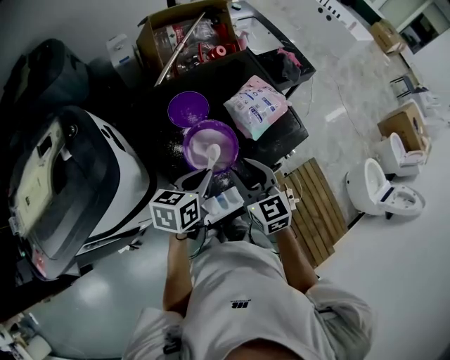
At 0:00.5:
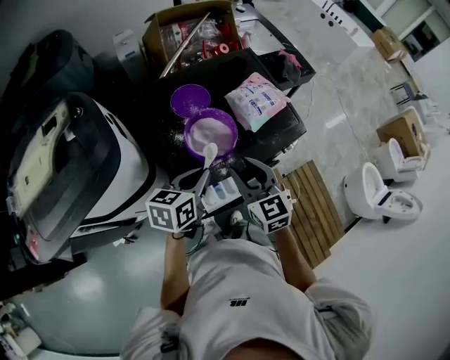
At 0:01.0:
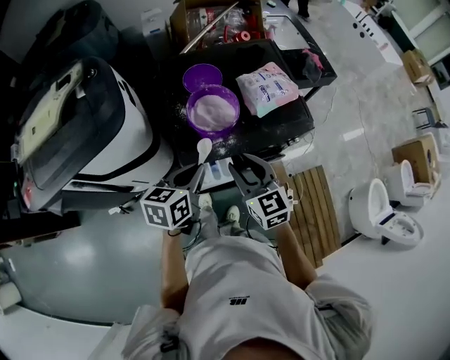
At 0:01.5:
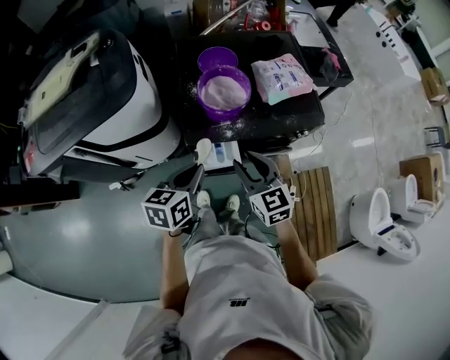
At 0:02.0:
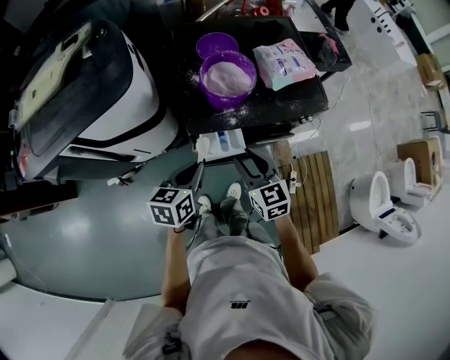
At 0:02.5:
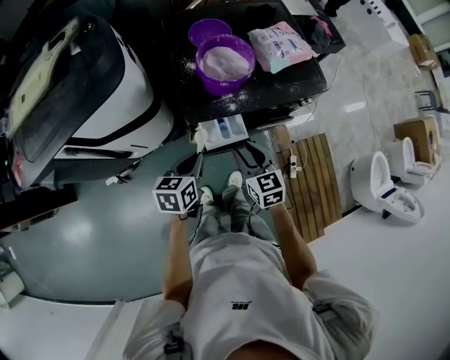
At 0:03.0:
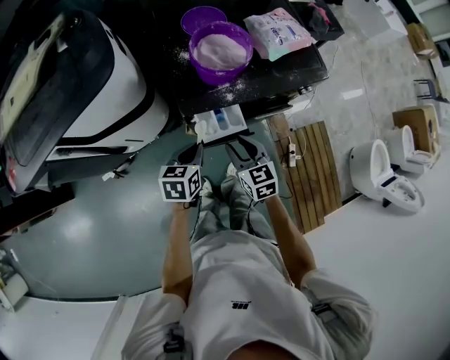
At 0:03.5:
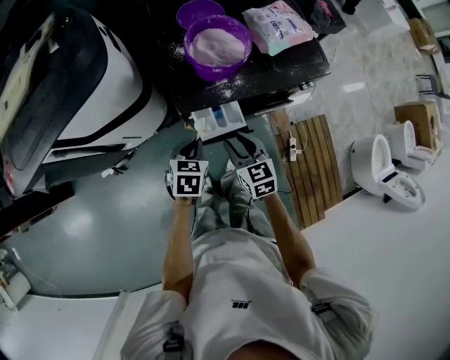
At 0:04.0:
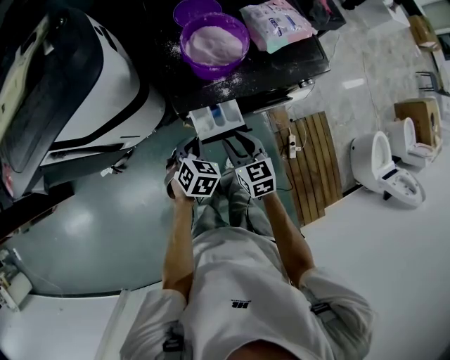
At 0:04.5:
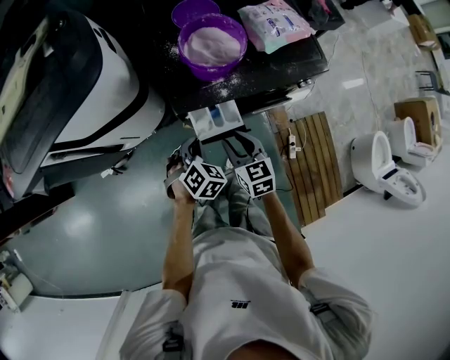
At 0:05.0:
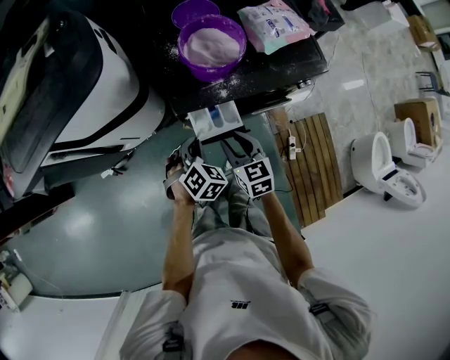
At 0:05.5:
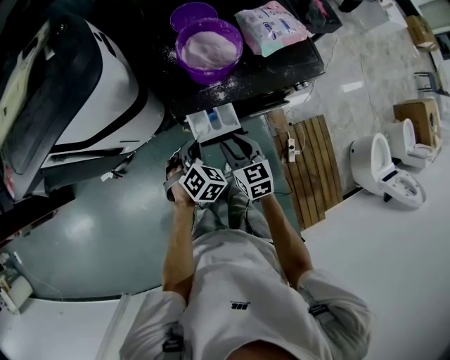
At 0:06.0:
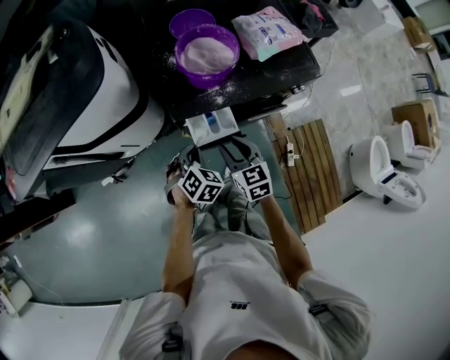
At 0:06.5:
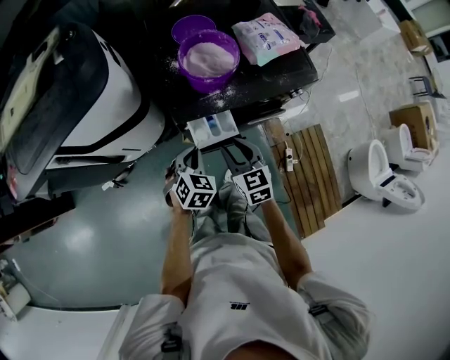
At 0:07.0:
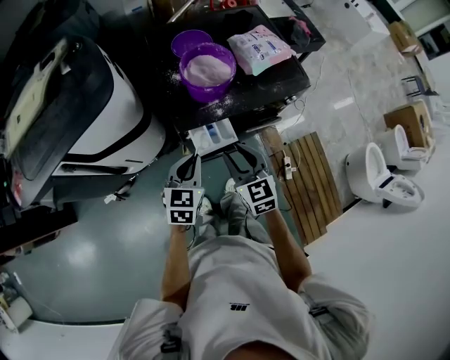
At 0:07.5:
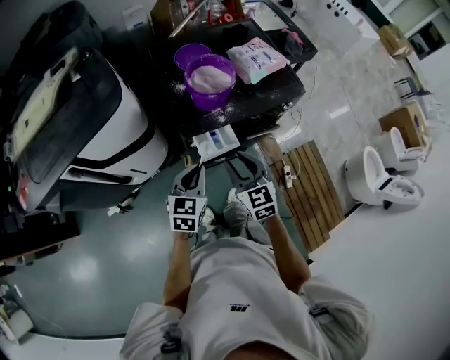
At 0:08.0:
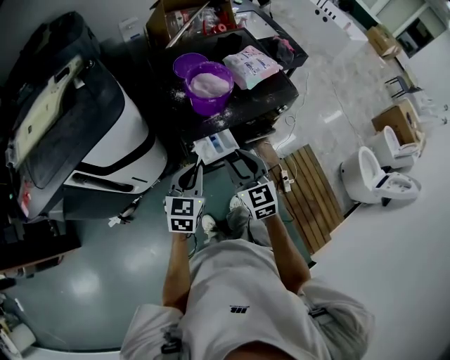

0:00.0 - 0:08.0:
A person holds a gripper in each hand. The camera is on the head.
0:00.0 - 0:02.0: The right gripper is displaced backward and downward by about 20 cm, while the left gripper heads backward, covering about 20 cm, and rotates approximately 20 degrees.
0:02.0 - 0:04.0: Both grippers move downward, about 15 cm. The left gripper rotates roughly 50 degrees.
0:04.0 - 0:06.0: There are only small adjustments of the grippers.
0:06.0 - 0:08.0: Both grippers move upward, about 15 cm. The left gripper tips its fingers upward by roughly 30 degrees.

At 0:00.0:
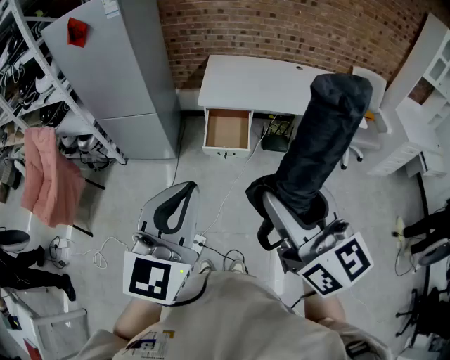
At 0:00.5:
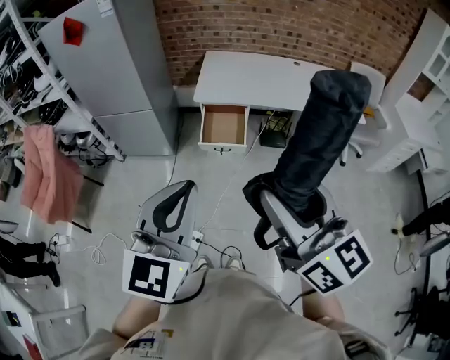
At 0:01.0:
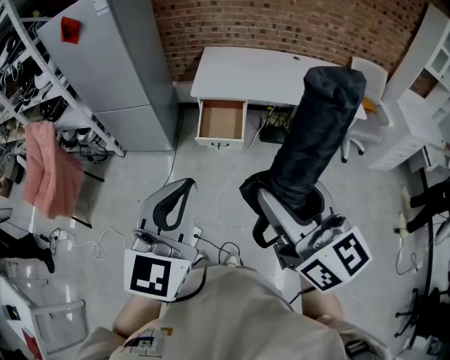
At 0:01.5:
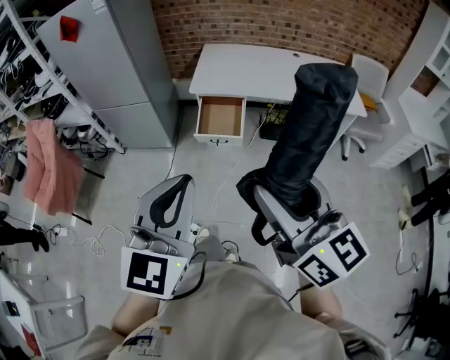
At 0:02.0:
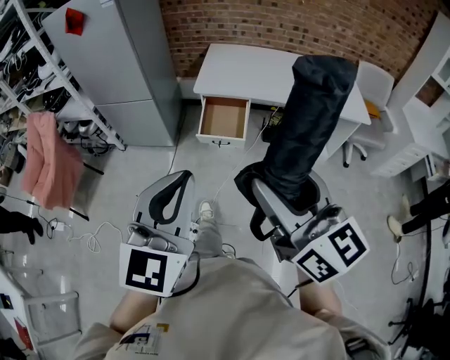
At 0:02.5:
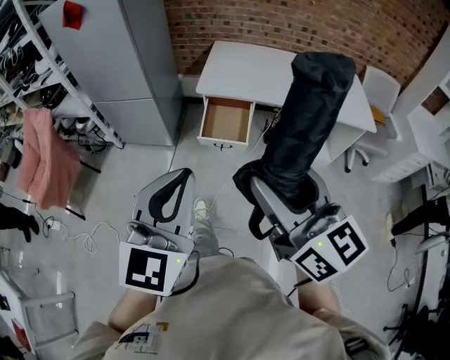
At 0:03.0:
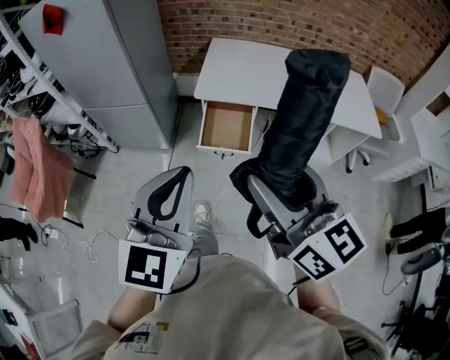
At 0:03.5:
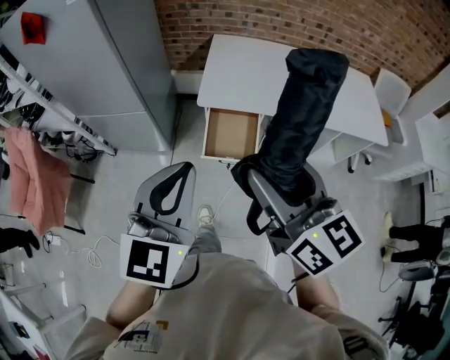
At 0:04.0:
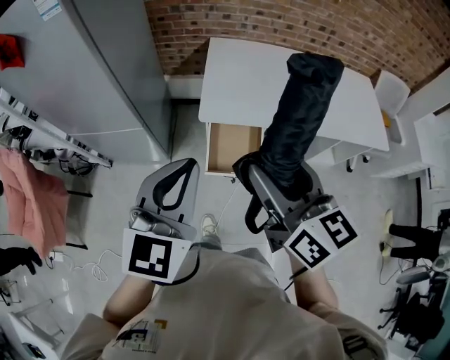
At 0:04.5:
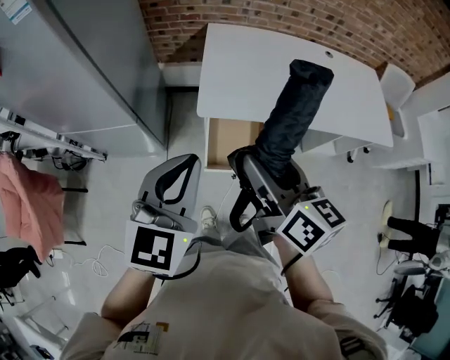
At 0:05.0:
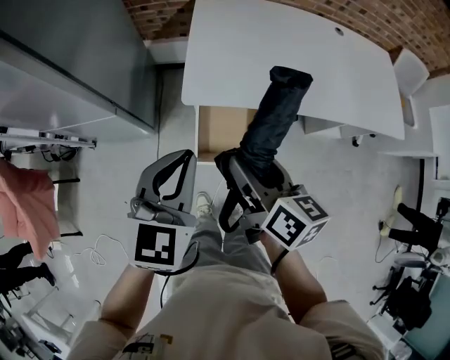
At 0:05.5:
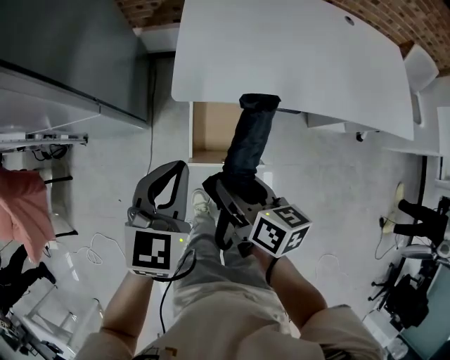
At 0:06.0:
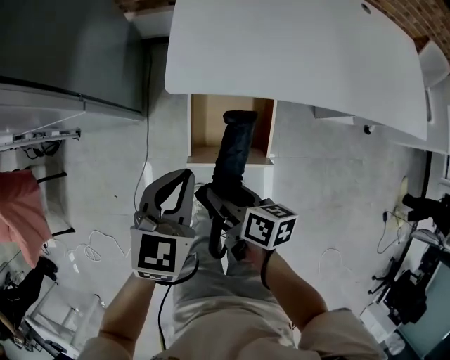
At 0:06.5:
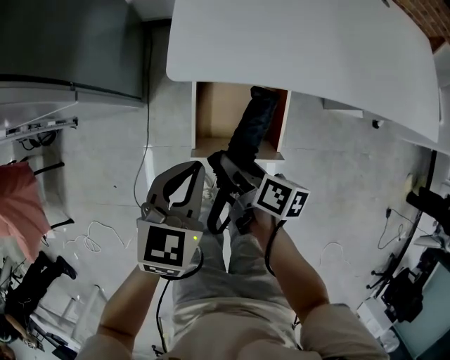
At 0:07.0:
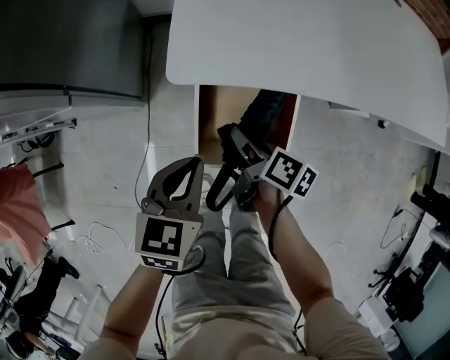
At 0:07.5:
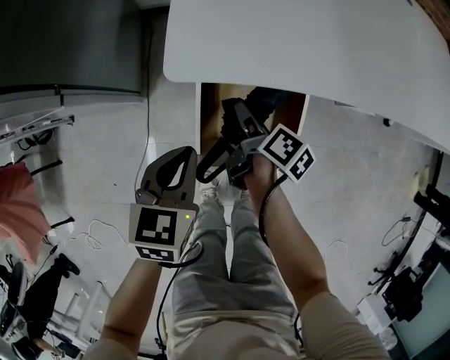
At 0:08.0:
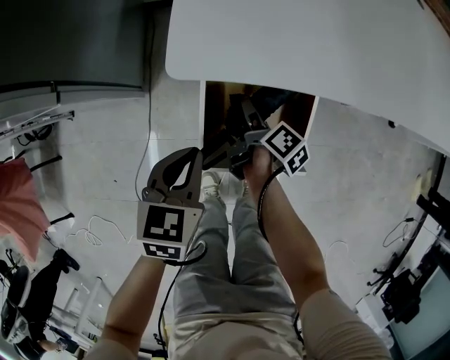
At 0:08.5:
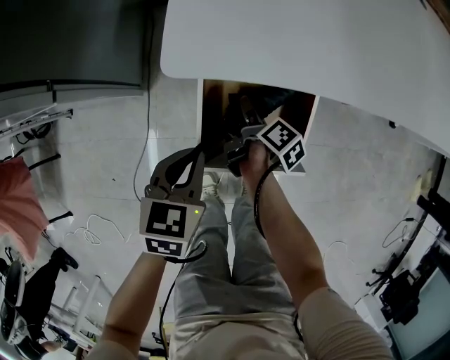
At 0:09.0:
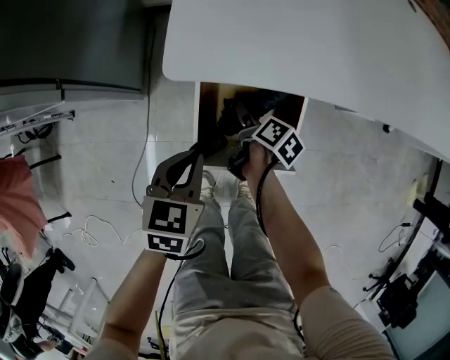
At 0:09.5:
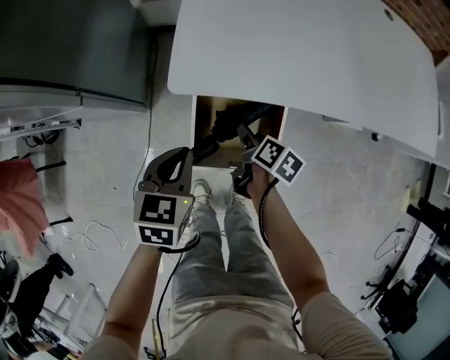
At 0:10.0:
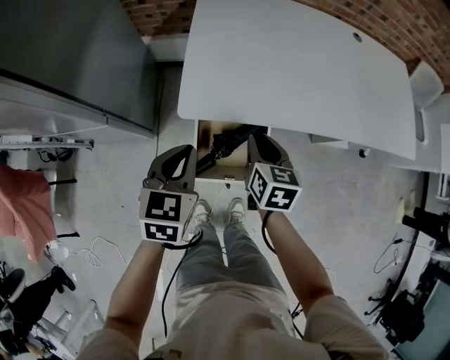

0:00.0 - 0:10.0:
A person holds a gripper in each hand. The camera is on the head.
0:00.0 - 0:02.0: The two grippers go roughly 5 cm to the right.
0:02.0 - 0:04.0: The pair of grippers is taken forward, about 50 cm.
0:04.0 - 0:06.0: The left gripper travels downward and forward by roughly 40 cm, and changes its angle by roughly 30 degrees. The right gripper is displaced downward by about 50 cm, and turns by some 50 degrees.
0:06.0 - 0:08.0: The left gripper shifts roughly 20 cm downward. Meanwhile the right gripper shifts approximately 30 cm downward and forward, and turns by approximately 40 degrees.
0:08.0 - 0:10.0: Both grippers travel together upward, some 30 cm. The right gripper twists some 60 degrees counterclockwise, seen from behind, and closes its fingers.

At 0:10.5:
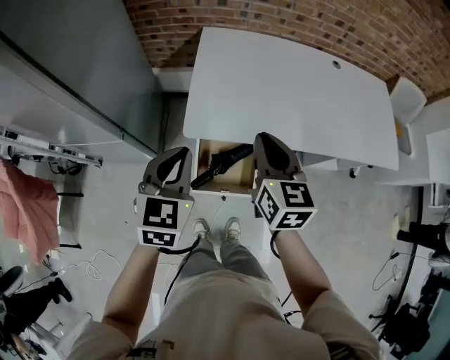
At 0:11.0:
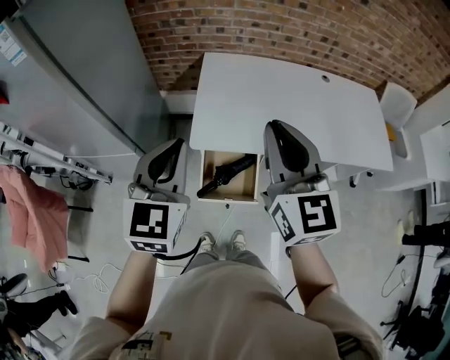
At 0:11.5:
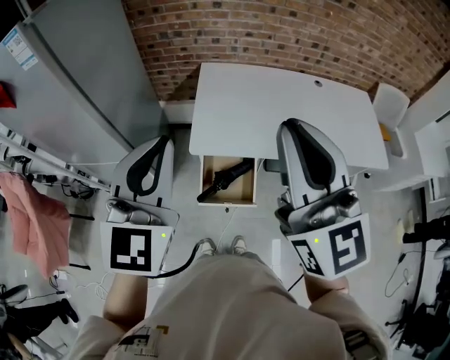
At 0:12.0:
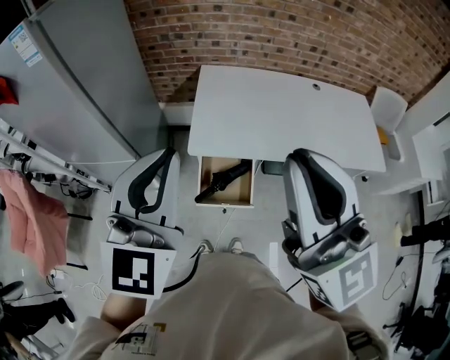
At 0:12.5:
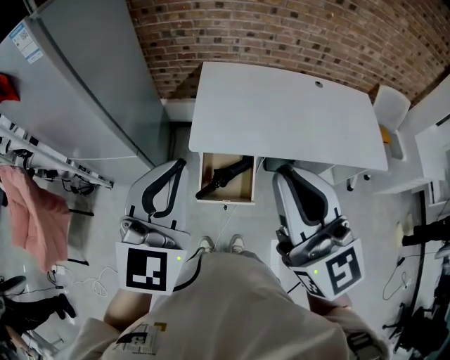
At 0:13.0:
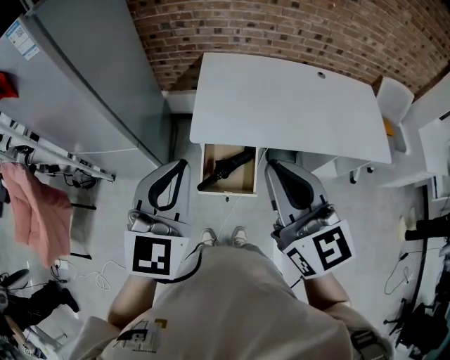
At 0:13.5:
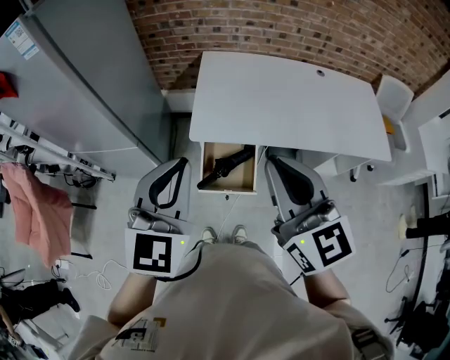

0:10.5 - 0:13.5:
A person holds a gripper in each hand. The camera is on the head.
0:10.5 - 0:12.0: Both grippers move upward and backward, approximately 35 cm. The left gripper changes its angle by roughly 30 degrees; the right gripper tips its fingers upward by approximately 30 degrees.
0:12.0 - 0:13.5: The two grippers go roughly 10 cm downward.

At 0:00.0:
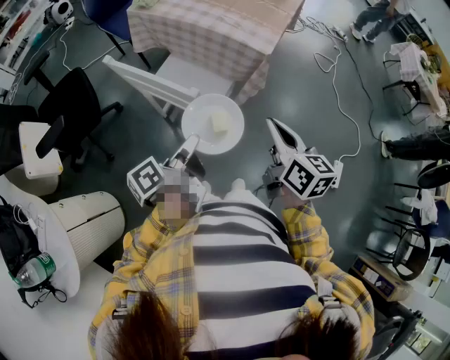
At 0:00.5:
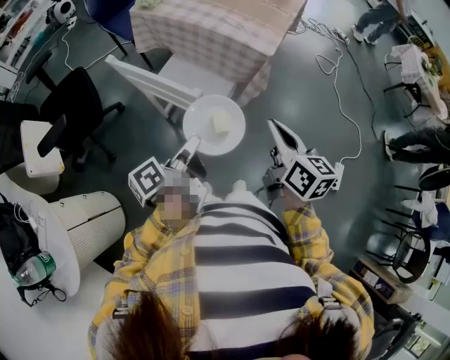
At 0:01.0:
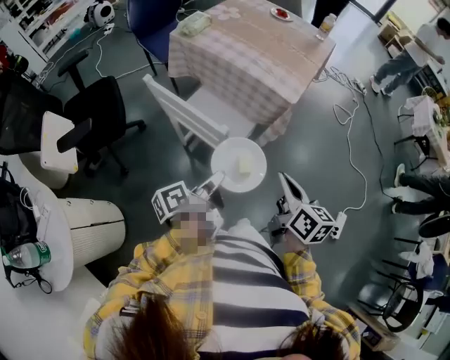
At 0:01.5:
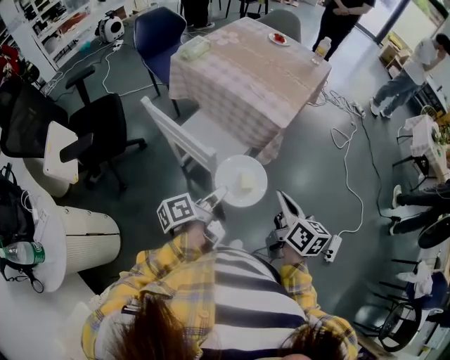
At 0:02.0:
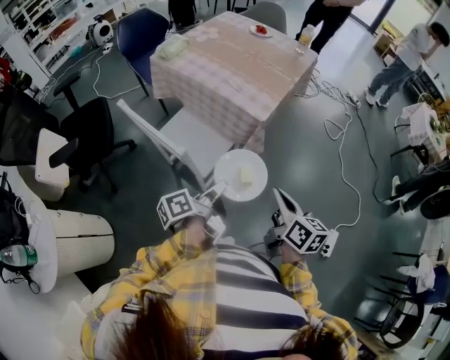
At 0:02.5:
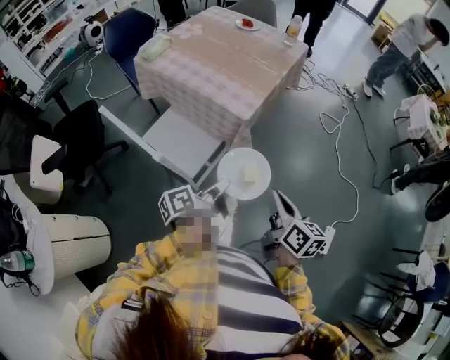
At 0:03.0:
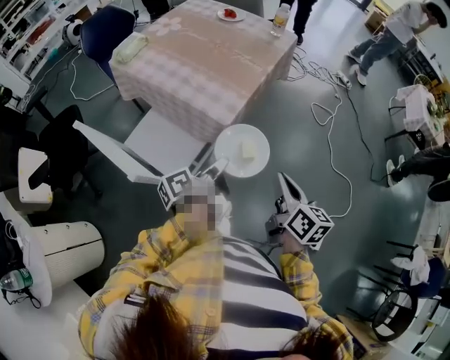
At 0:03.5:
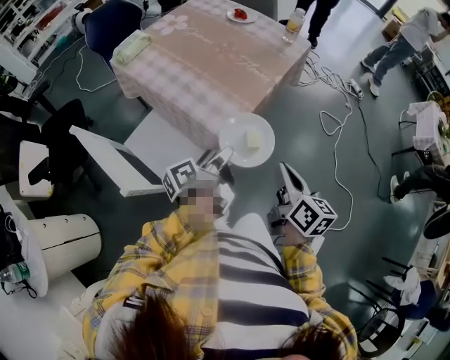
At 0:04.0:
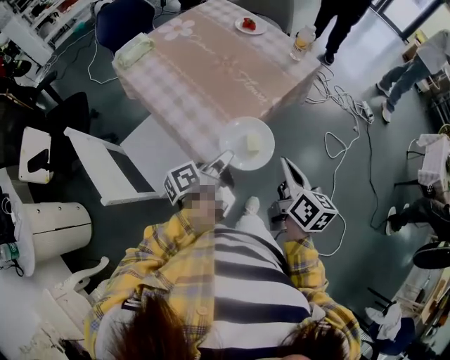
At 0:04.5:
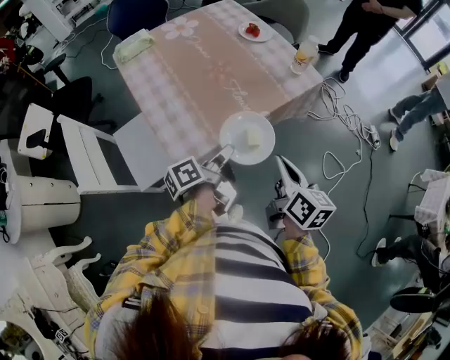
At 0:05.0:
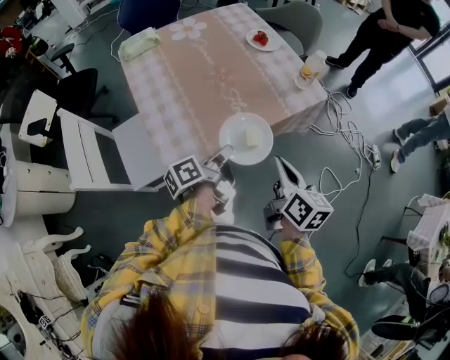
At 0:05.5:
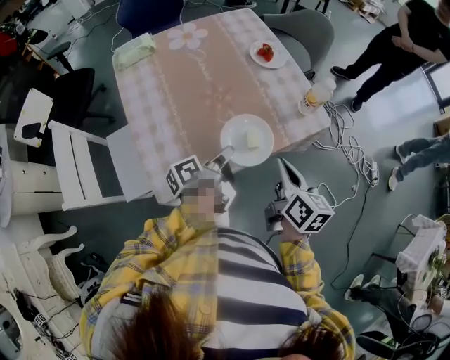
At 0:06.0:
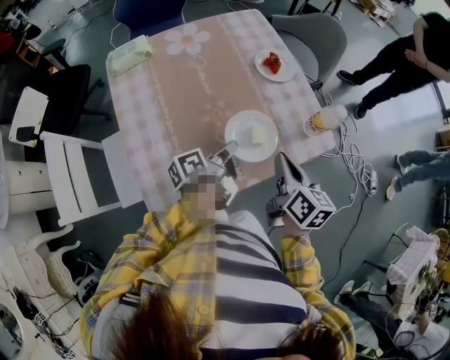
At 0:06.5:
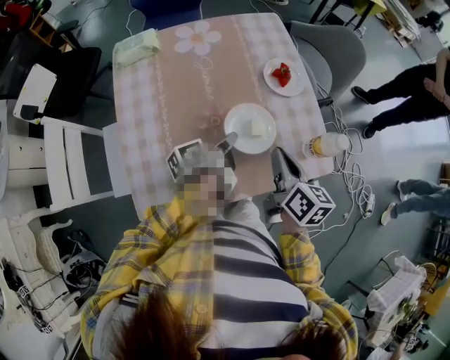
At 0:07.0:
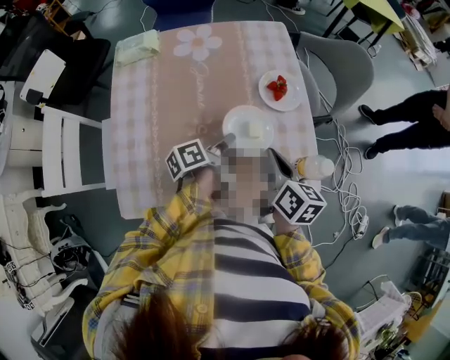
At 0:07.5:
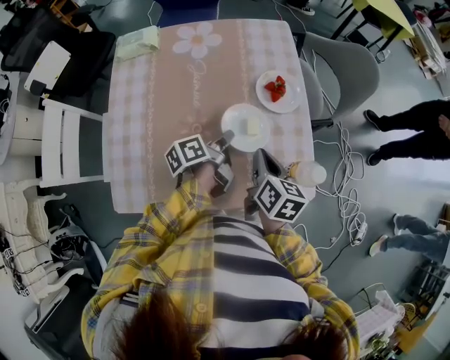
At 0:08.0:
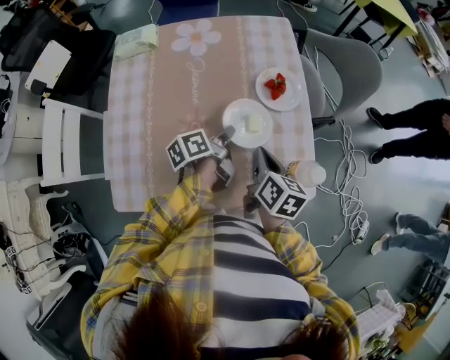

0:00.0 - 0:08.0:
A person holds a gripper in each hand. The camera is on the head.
0:00.0 - 0:02.0: The right gripper shifts by approximately 10 cm.
0:02.0 - 0:04.0: The right gripper changes place by about 35 cm.
0:04.0 - 0:06.0: The right gripper ends up roughly 35 cm from where it was, and changes its angle by roughly 20 degrees.
0:06.0 - 0:08.0: The right gripper ends up some 15 cm from where it was.
